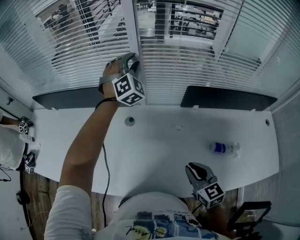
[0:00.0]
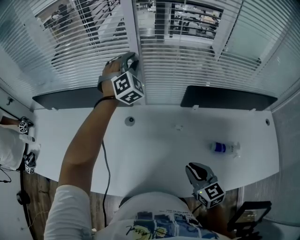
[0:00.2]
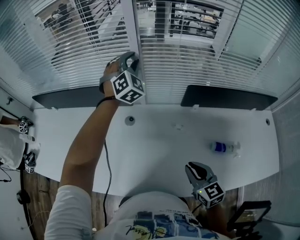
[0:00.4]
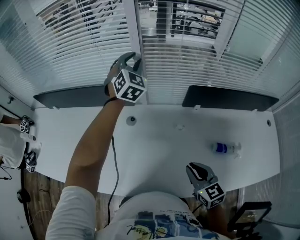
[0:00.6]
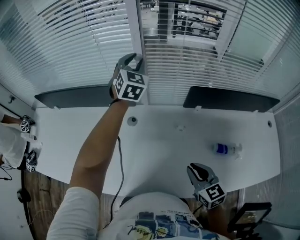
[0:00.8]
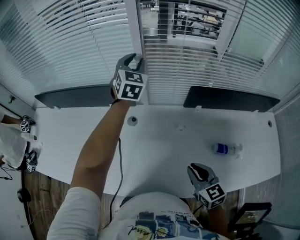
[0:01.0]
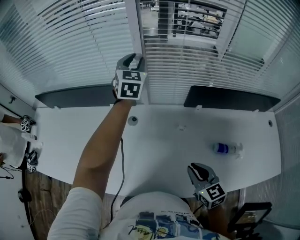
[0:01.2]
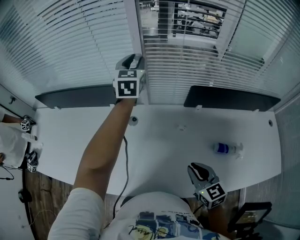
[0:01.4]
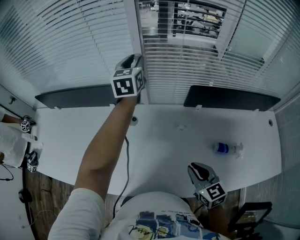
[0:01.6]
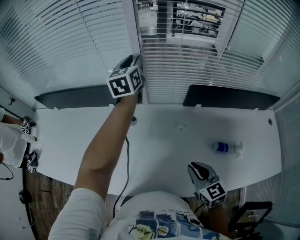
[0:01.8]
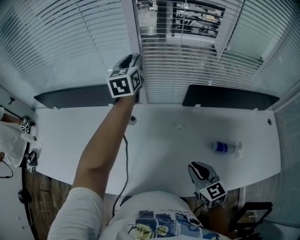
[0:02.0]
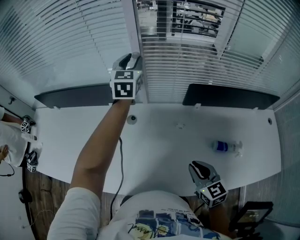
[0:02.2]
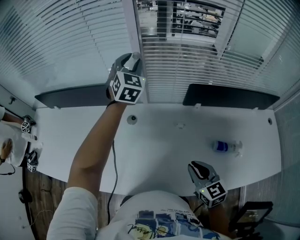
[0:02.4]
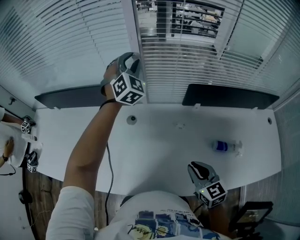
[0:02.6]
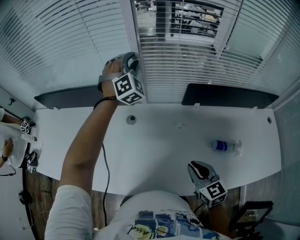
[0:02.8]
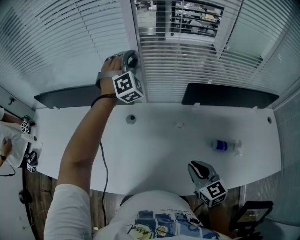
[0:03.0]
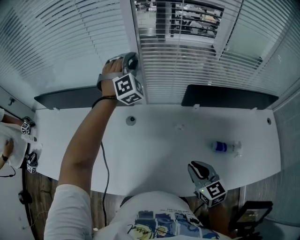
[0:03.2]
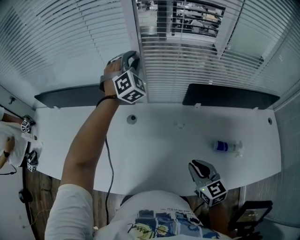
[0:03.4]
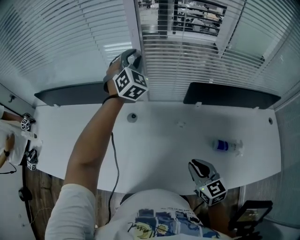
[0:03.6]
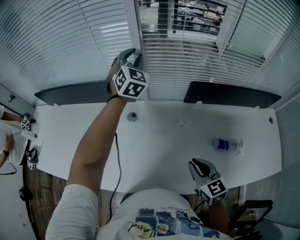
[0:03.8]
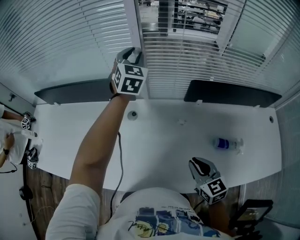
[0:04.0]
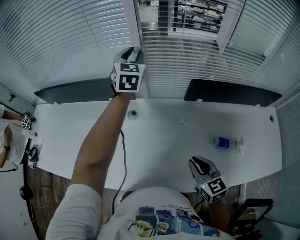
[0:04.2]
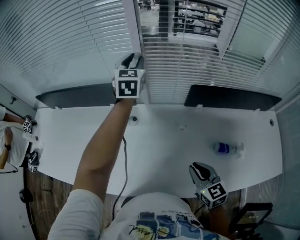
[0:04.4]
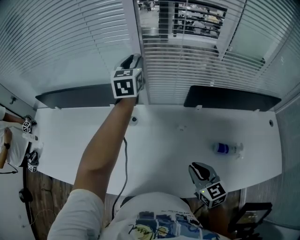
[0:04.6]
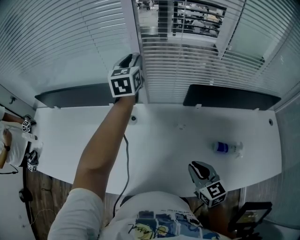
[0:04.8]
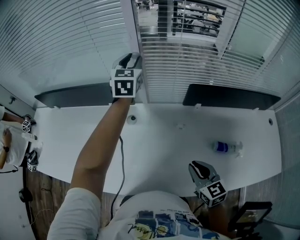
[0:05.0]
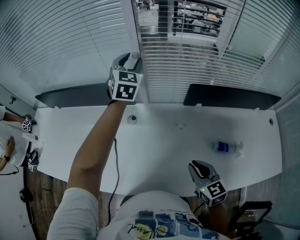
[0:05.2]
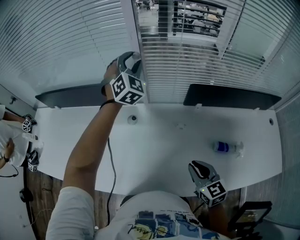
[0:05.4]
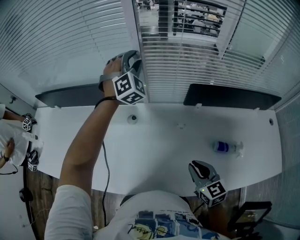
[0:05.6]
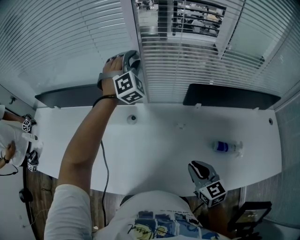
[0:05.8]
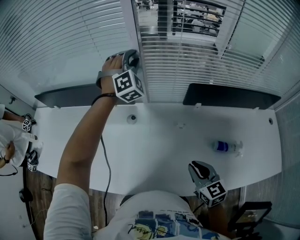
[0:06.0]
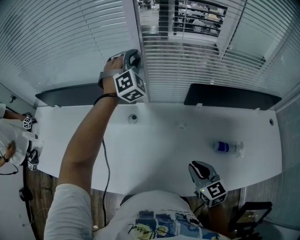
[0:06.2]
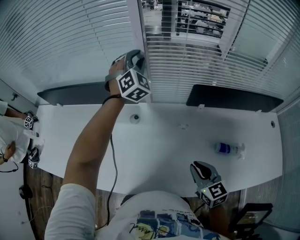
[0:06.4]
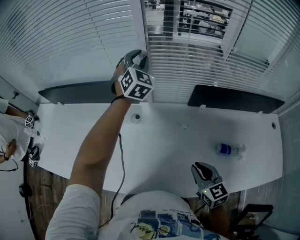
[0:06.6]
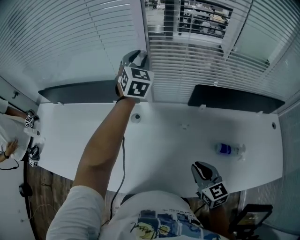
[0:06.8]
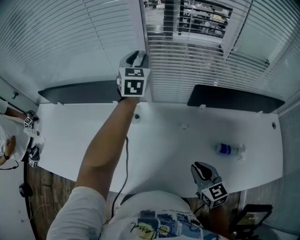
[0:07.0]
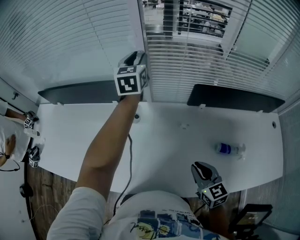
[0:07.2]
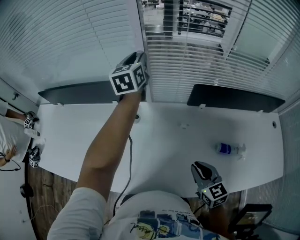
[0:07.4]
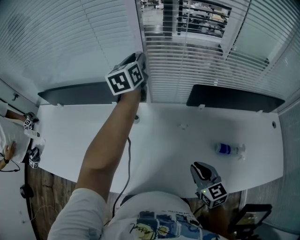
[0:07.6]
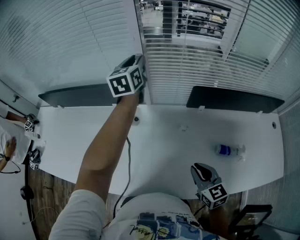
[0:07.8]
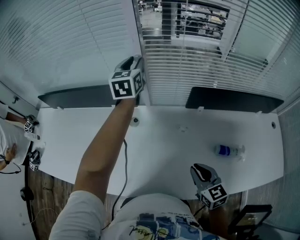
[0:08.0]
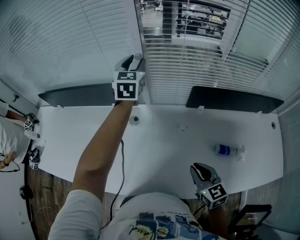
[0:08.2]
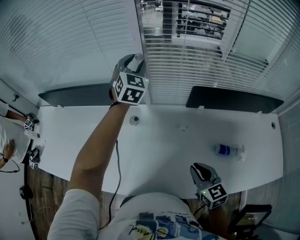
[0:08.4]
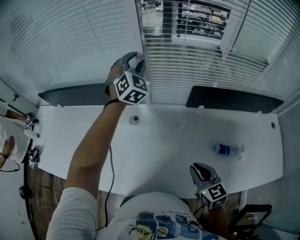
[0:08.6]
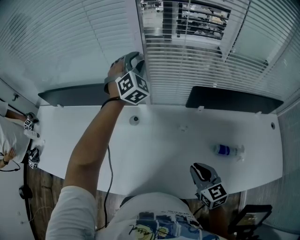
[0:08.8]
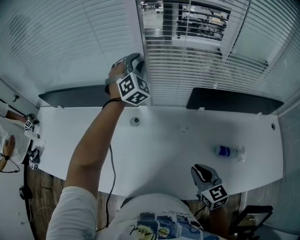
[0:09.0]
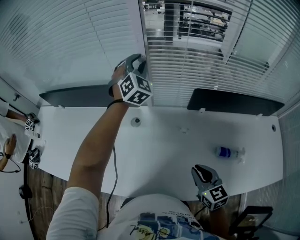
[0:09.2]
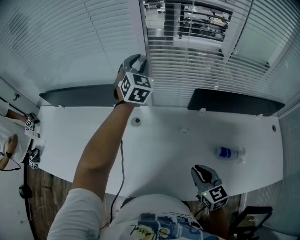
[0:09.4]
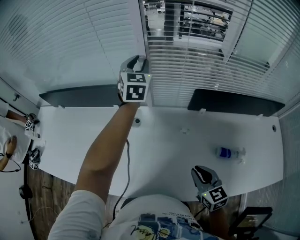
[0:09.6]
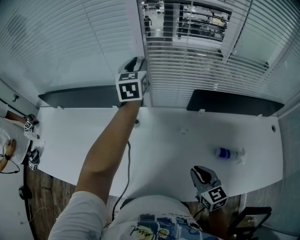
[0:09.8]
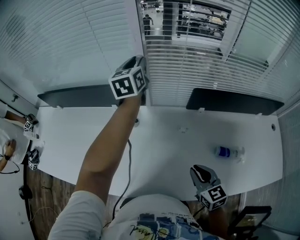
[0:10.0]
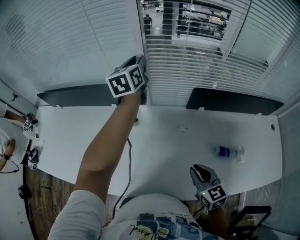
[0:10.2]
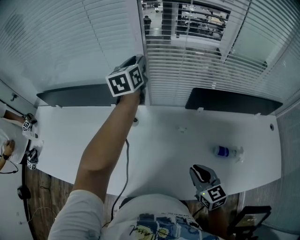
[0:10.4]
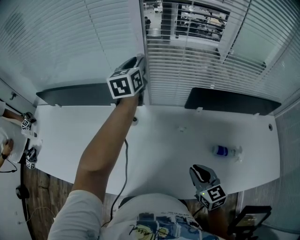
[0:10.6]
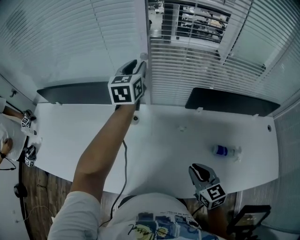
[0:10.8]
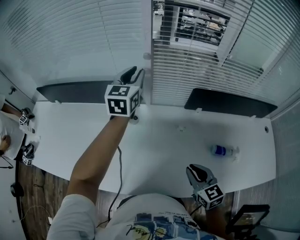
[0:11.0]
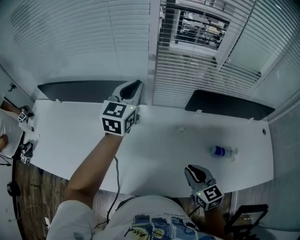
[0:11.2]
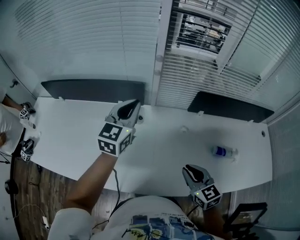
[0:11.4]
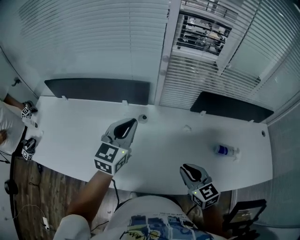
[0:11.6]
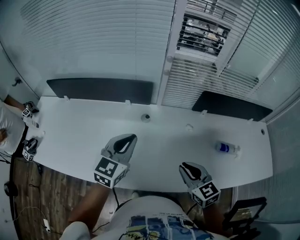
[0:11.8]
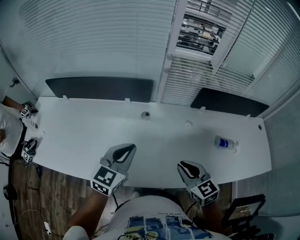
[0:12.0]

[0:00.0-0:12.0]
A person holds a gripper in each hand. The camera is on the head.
0:00.0 to 0:01.6: The left gripper twists roughly 70 degrees counterclockwise, seen from behind.
0:01.6 to 0:03.0: The left gripper twists some 80 degrees clockwise, seen from behind.
0:03.0 to 0:04.4: The left gripper rotates around the line of its fingers by about 60 degrees, counterclockwise from behind.
0:04.4 to 0:06.0: The left gripper twists about 60 degrees clockwise, seen from behind.
0:06.0 to 0:07.6: The left gripper twists some 90 degrees counterclockwise, seen from behind.
0:07.6 to 0:09.0: The left gripper twists roughly 70 degrees clockwise, seen from behind.
0:09.0 to 0:10.4: The left gripper rolls counterclockwise, seen from behind, by roughly 70 degrees.
0:10.4 to 0:12.0: The left gripper goes approximately 40 cm backward and to the left, rotates some 30 degrees, and closes, while the right gripper goes some 15 cm to the left.

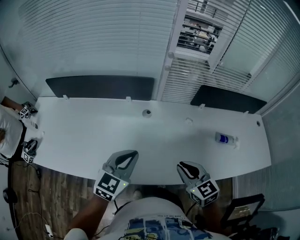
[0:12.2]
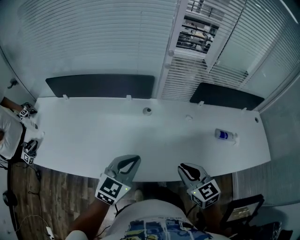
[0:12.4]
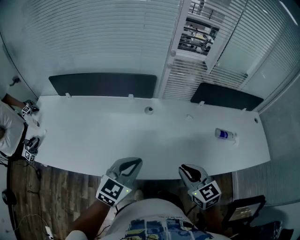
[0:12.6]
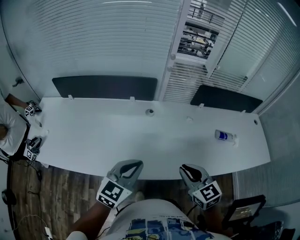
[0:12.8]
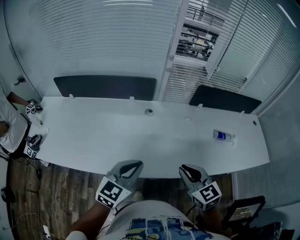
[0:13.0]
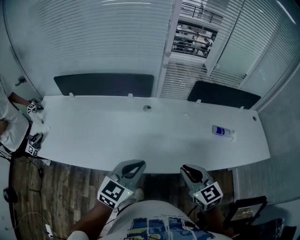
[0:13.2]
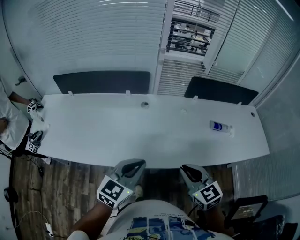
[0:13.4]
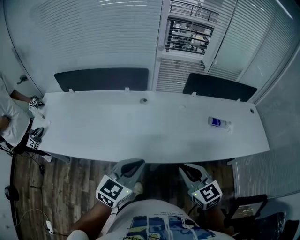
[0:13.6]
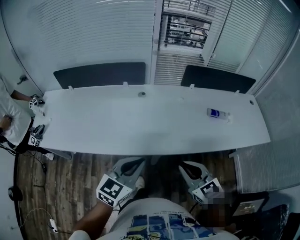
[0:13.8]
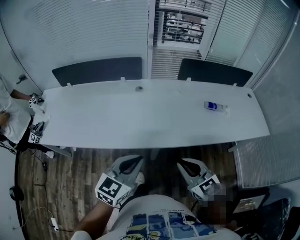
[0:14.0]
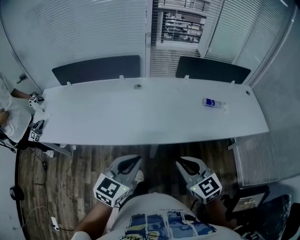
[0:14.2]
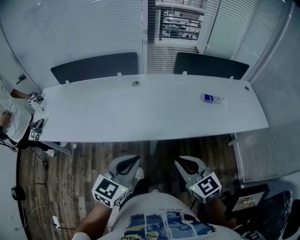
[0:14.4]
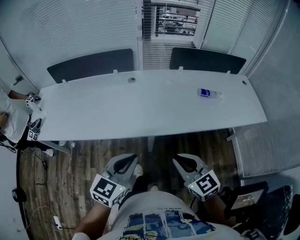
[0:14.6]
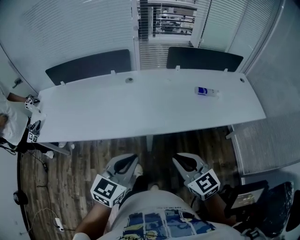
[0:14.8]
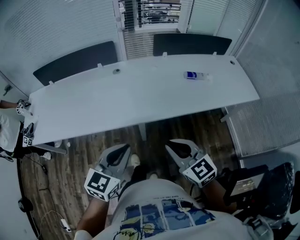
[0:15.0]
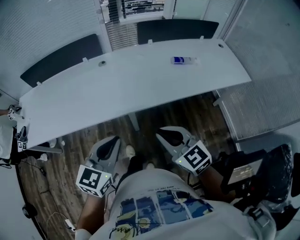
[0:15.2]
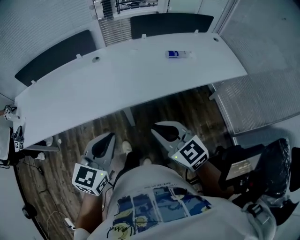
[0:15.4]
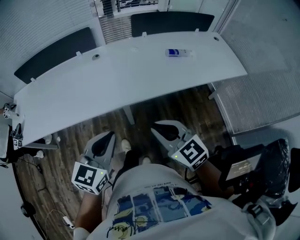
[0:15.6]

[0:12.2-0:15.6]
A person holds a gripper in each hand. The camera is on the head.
0:12.2 to 0:13.8: The grippers both shift backward by approximately 20 cm.
0:13.8 to 0:15.6: The right gripper shifts about 10 cm backward. The left gripper shifts about 15 cm backward and to the right.

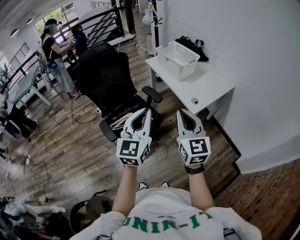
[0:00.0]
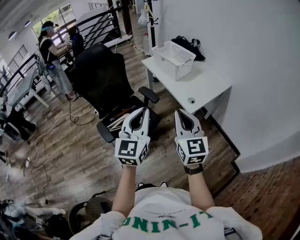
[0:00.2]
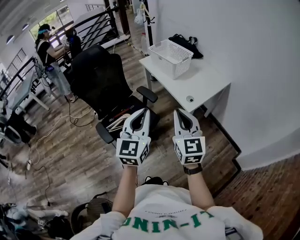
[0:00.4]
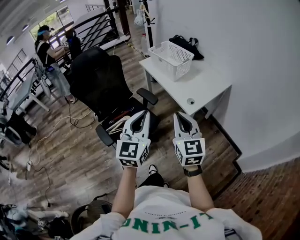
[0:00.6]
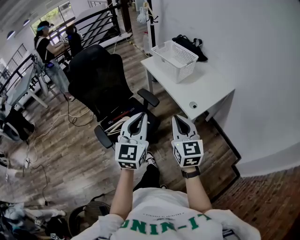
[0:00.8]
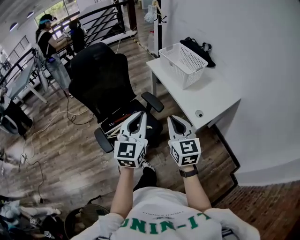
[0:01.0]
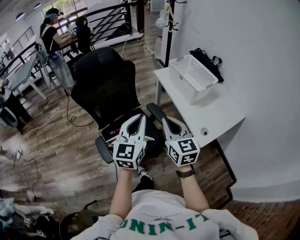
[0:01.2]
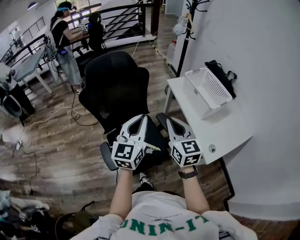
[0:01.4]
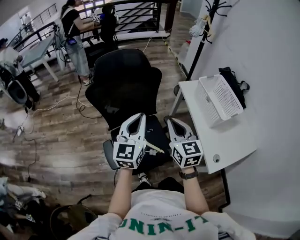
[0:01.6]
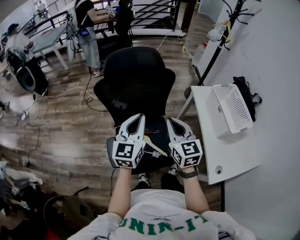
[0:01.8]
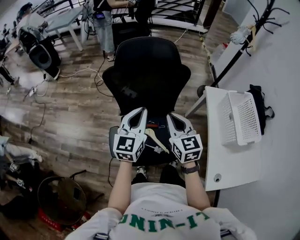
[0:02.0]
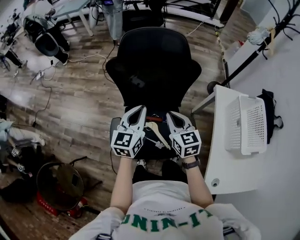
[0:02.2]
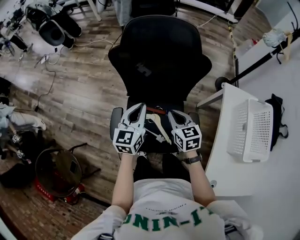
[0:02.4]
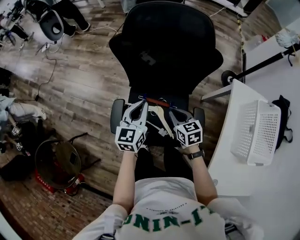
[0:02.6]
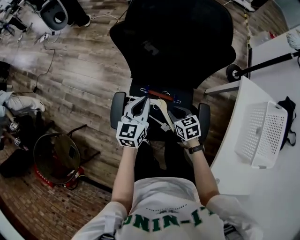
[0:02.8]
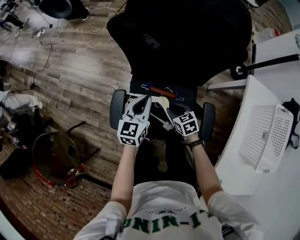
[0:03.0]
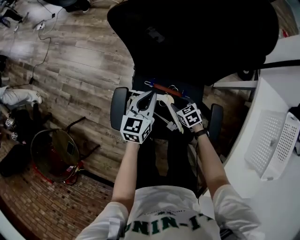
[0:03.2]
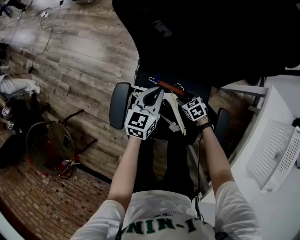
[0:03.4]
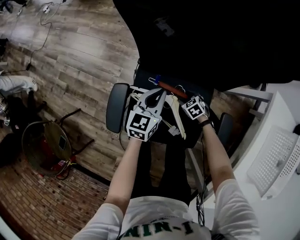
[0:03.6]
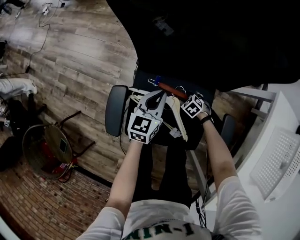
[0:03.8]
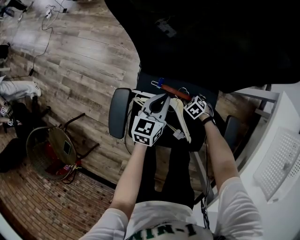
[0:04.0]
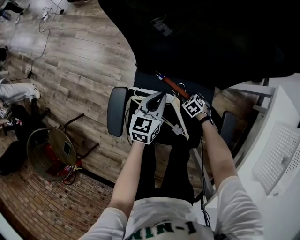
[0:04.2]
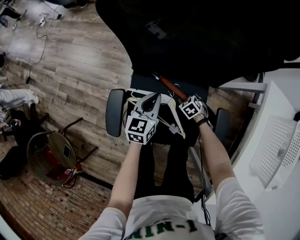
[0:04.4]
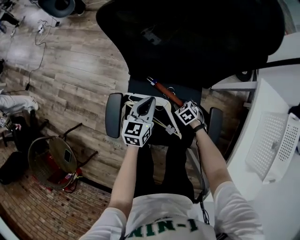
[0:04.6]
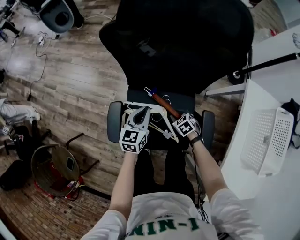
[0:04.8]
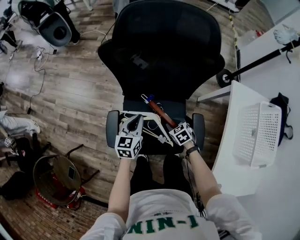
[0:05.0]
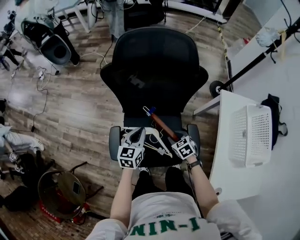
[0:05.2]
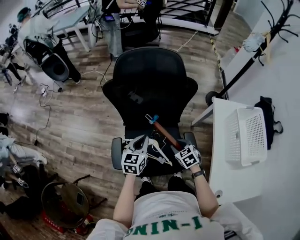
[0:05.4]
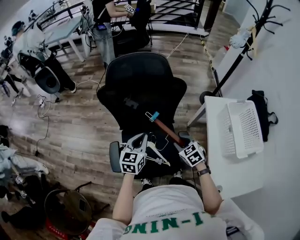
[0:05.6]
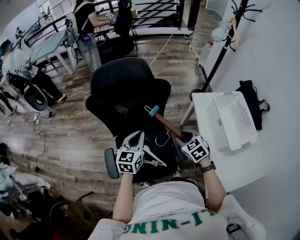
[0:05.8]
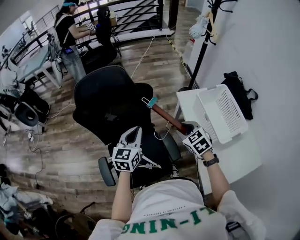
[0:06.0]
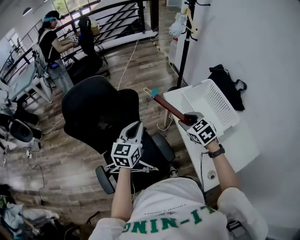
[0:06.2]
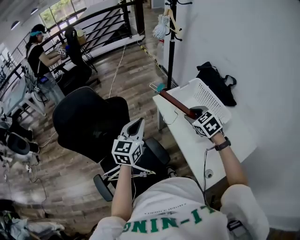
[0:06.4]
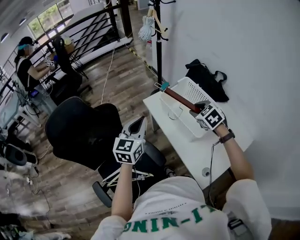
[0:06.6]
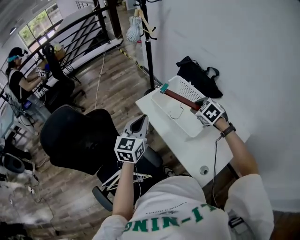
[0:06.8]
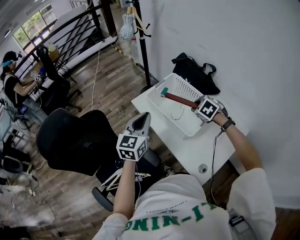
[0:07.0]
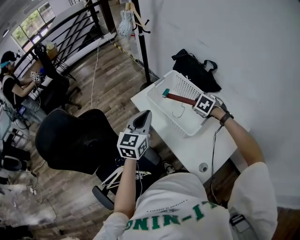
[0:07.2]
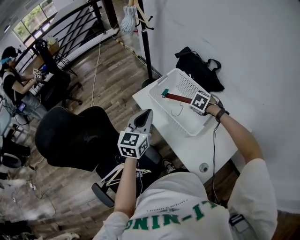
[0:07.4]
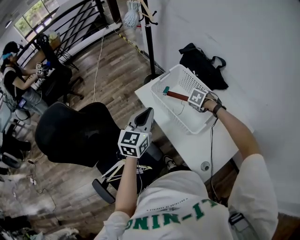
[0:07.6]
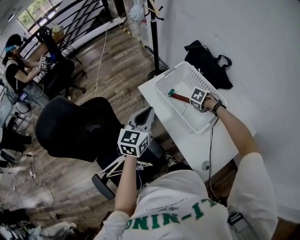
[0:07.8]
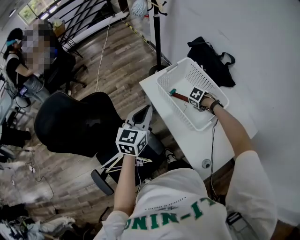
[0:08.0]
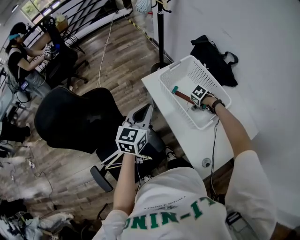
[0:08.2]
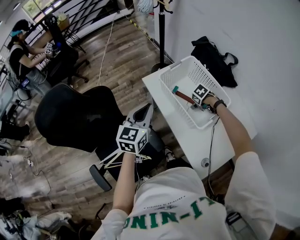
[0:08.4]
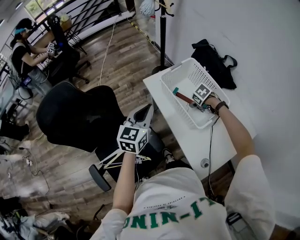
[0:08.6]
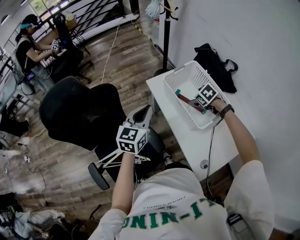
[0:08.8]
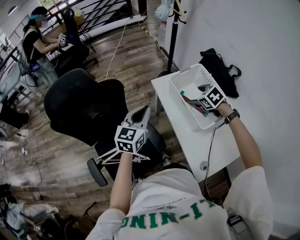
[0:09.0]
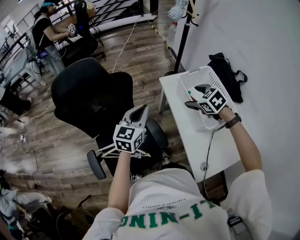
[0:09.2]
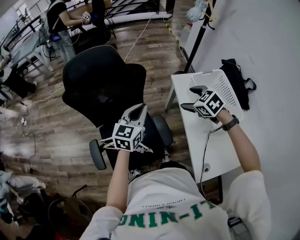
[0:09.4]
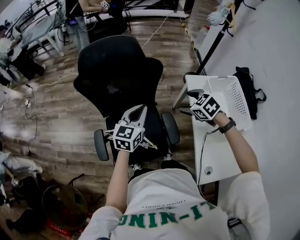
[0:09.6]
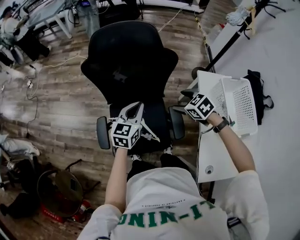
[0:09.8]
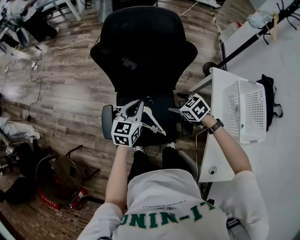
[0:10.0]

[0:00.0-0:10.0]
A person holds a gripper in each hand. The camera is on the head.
0:00.0 to 0:01.4: The grippers both shift forward and to the left by about 35 cm. The right gripper turns by some 20 degrees.
0:01.4 to 0:02.8: Both grippers travel together downward, roughly 35 cm. The right gripper tilts its fingers about 40 degrees downward. Meanwhile the left gripper swivels approximately 40 degrees.
0:02.8 to 0:04.2: The two grippers go roughly 30 cm downward. The right gripper turns by some 40 degrees.
0:04.2 to 0:05.8: The left gripper travels upward by about 35 cm, and swivels some 20 degrees. The right gripper travels upward by about 50 cm, and swivels about 40 degrees.
0:05.8 to 0:07.2: The right gripper travels upward and back again, approximately 10 cm each way, and turns by roughly 30 degrees, while the left gripper moves about 40 cm, and turns by about 40 degrees.
0:07.2 to 0:08.6: The right gripper goes about 15 cm downward, and opens up. Meanwhile the left gripper changes place by some 5 cm.
0:08.6 to 0:10.0: The left gripper moves some 40 cm, and changes its angle by approximately 40 degrees; the right gripper moves some 20 cm upward and comes back, and rotates some 50 degrees.
